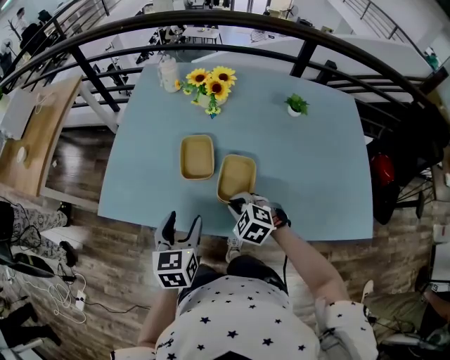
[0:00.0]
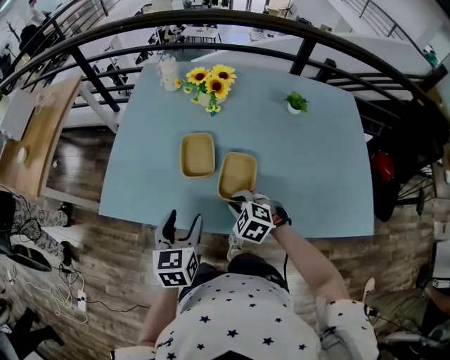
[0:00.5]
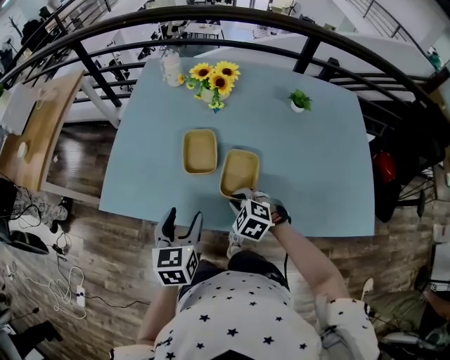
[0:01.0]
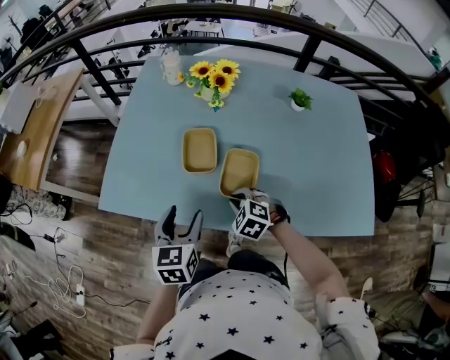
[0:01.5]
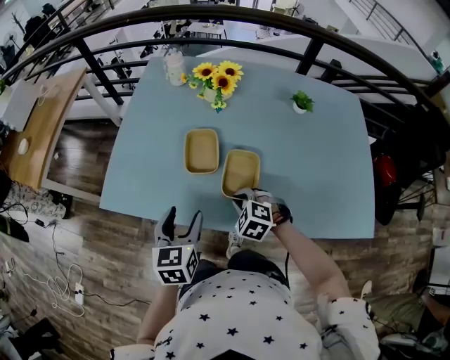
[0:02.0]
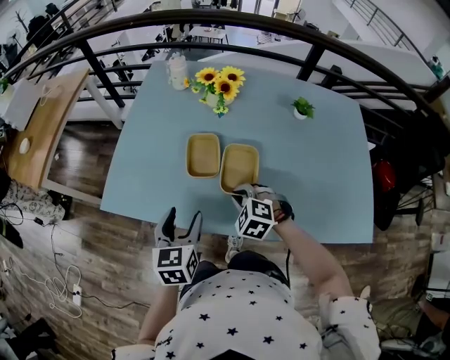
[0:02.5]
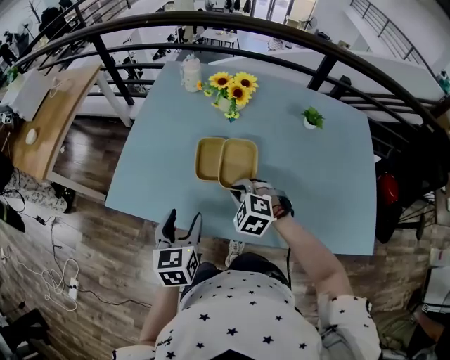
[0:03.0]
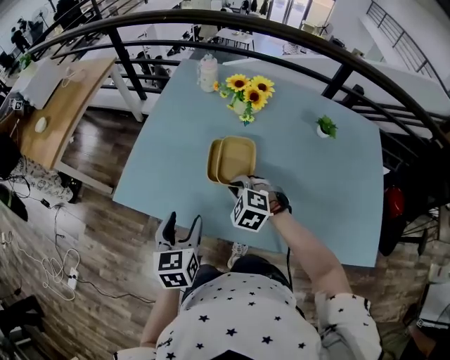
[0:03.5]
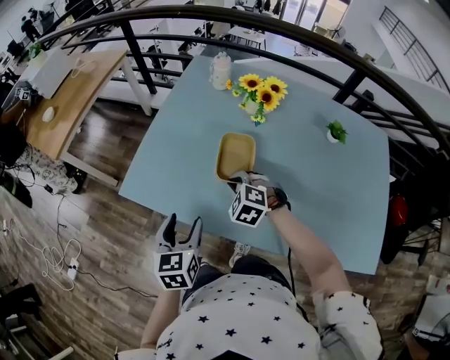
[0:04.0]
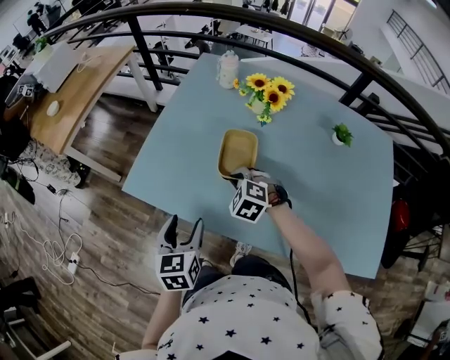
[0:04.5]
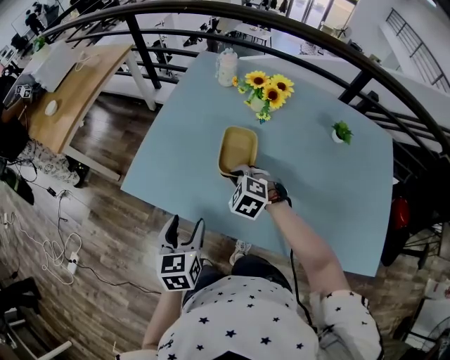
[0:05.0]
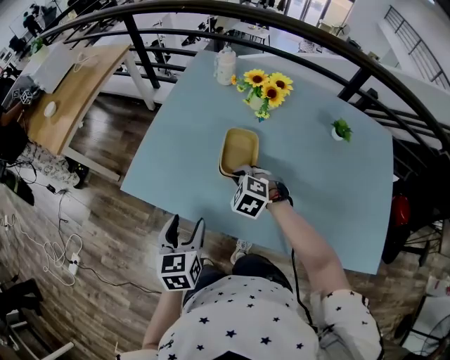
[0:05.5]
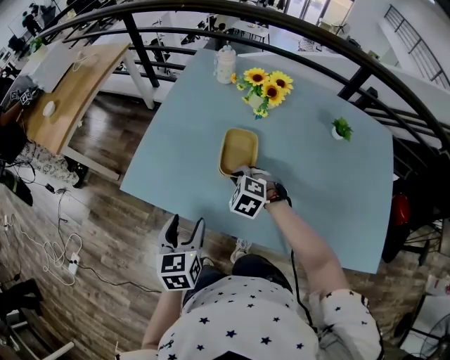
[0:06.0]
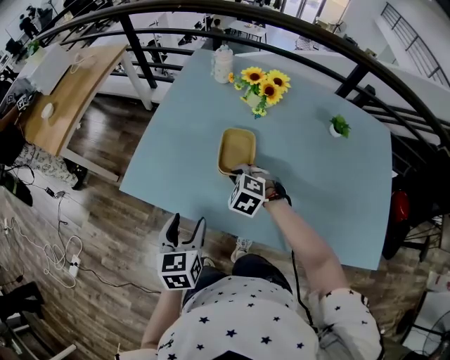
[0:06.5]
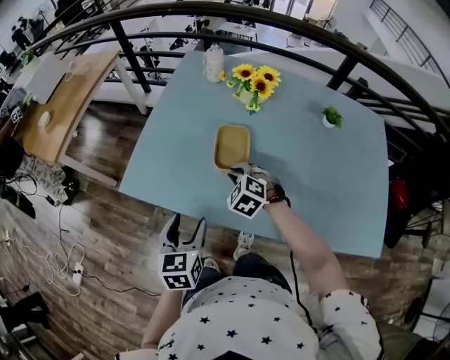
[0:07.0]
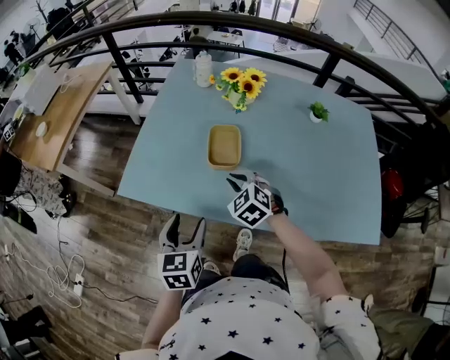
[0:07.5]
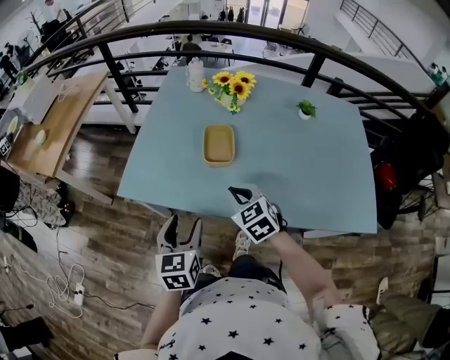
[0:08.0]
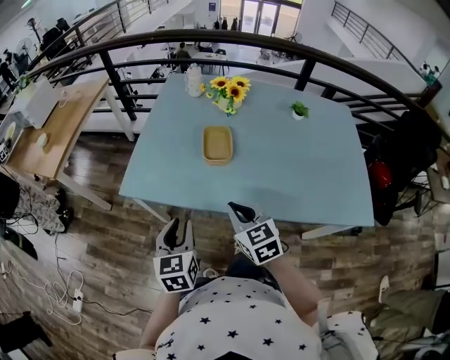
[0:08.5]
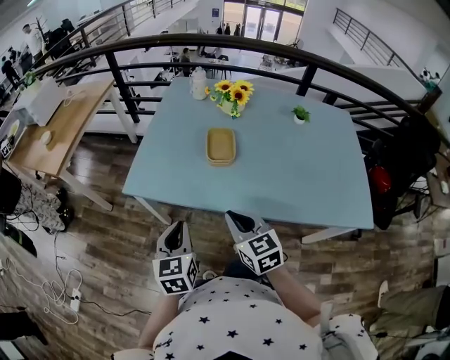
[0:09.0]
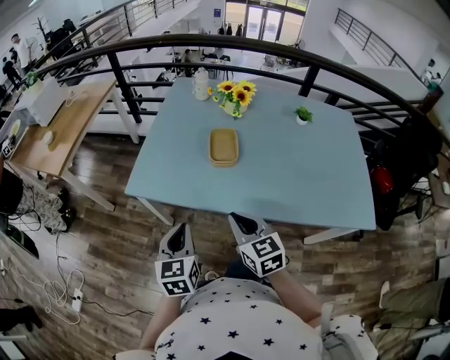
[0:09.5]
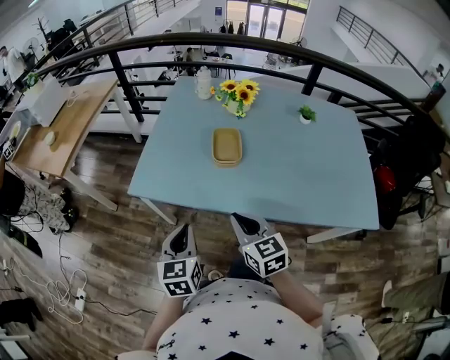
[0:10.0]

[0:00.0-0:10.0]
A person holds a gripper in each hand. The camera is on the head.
0:00.0 to 0:02.0: There are only small adjustments of the grippers.
0:02.0 to 0:04.0: The right gripper shifts about 15 cm forward and to the left, while the left gripper travels to the left by roughly 5 cm.
0:04.0 to 0:06.0: The grippers make only small movements.
0:06.0 to 0:08.0: The right gripper travels backward and upward by approximately 15 cm, and turns by roughly 40 degrees; the left gripper is displaced backward by some 5 cm.
0:08.0 to 0:10.0: The right gripper travels backward by approximately 10 cm, and changes its angle by about 20 degrees; the left gripper moves approximately 5 cm, and closes its fingers.

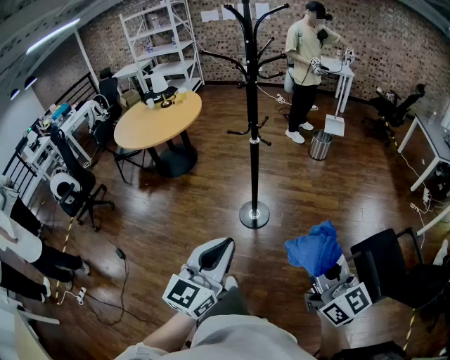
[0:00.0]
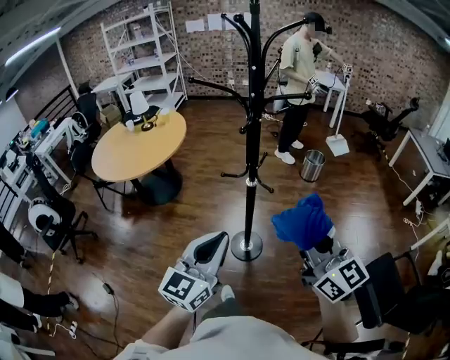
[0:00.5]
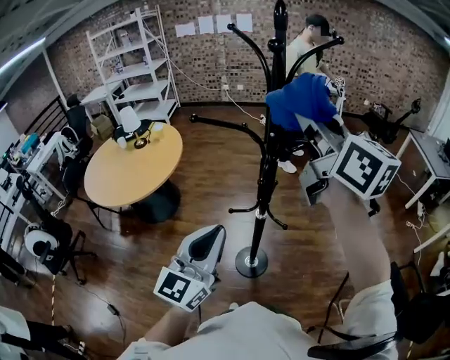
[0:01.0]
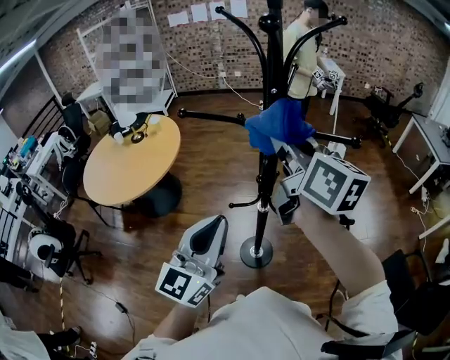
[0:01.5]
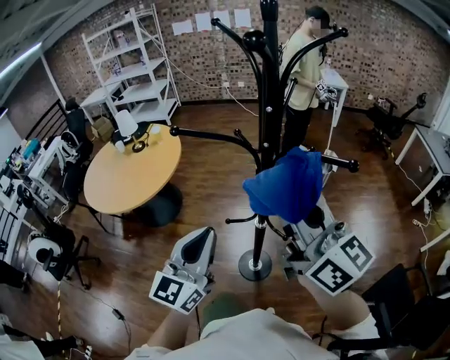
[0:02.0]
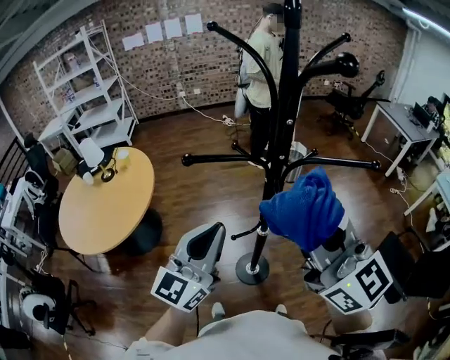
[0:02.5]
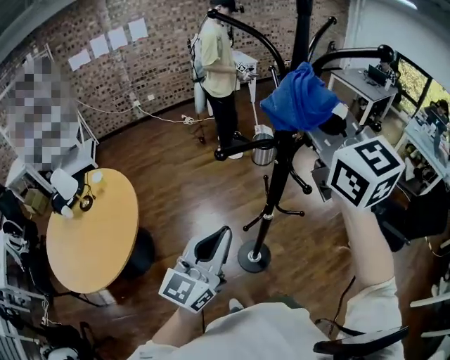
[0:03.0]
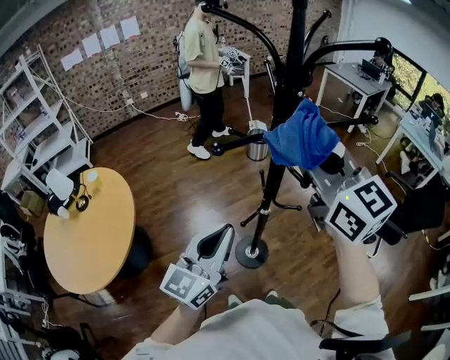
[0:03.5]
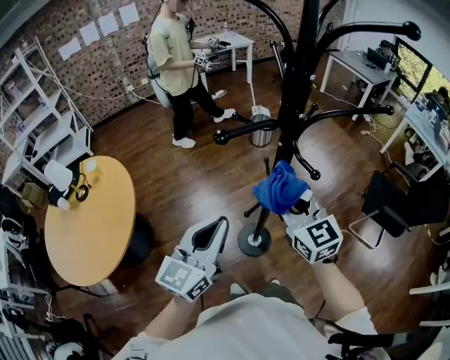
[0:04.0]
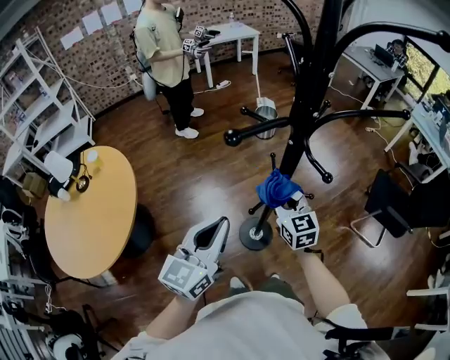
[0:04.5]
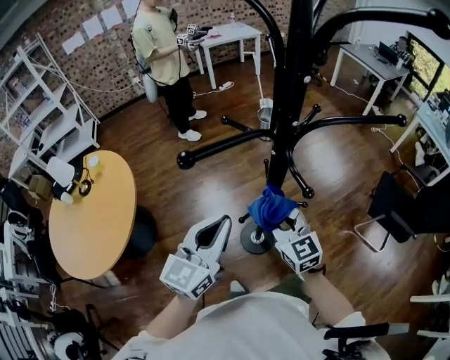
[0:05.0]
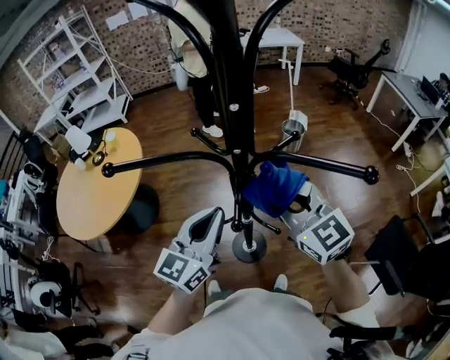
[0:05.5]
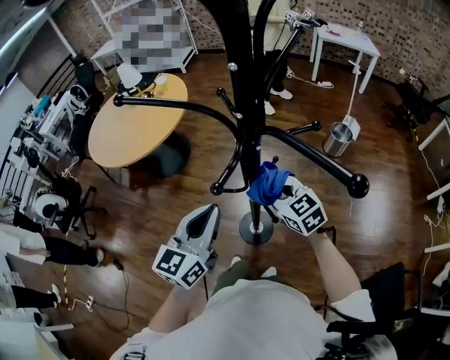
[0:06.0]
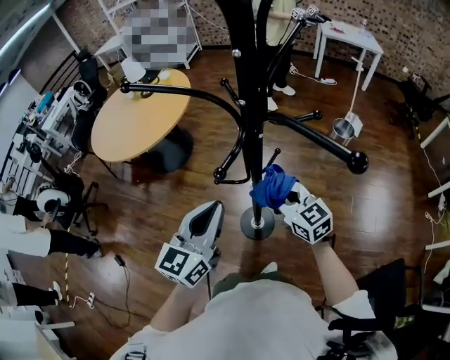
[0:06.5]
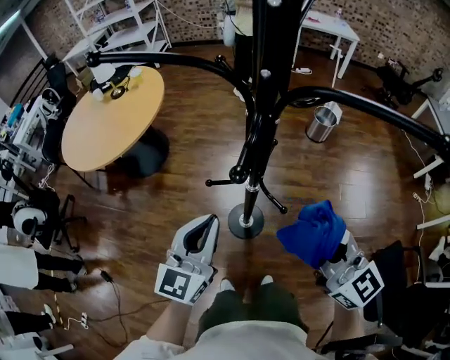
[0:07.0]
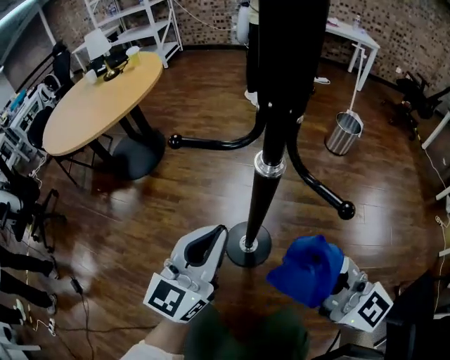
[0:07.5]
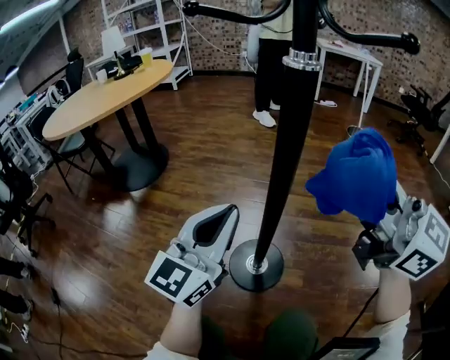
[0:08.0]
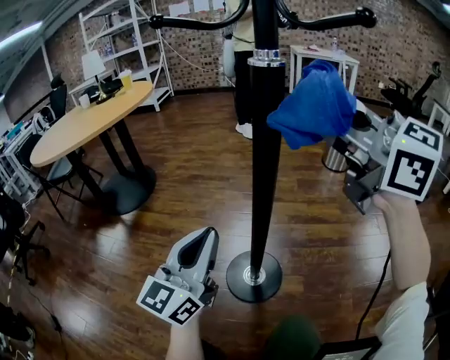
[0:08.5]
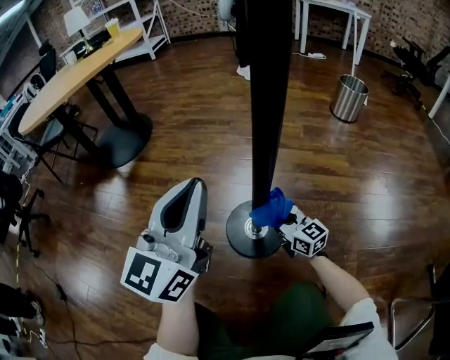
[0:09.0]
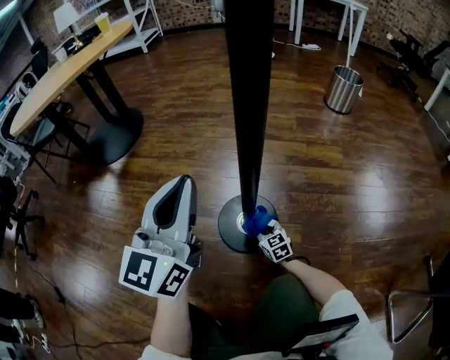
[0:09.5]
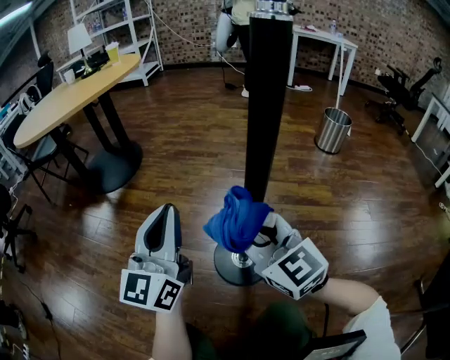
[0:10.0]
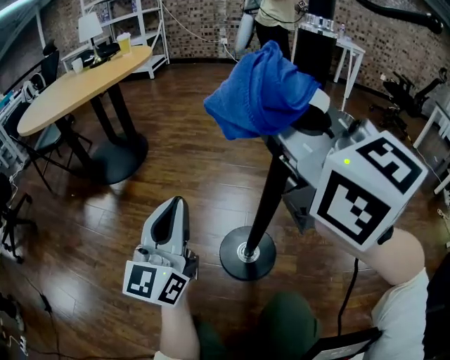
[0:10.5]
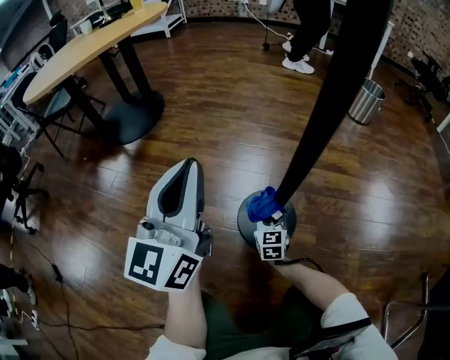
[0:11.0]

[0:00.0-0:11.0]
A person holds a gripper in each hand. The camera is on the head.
0:00.0 to 0:02.0: Both grippers are carried forward, approximately 50 cm.
0:02.0 to 0:03.5: The left gripper shifts by approximately 10 cm, and swivels approximately 40 degrees. The right gripper reaches about 10 cm upward, then returns, and changes its angle by roughly 50 degrees.
0:03.5 to 0:05.5: The right gripper goes approximately 15 cm downward, and rotates approximately 30 degrees, while the left gripper shifts by some 15 cm, and swivels roughly 20 degrees.
0:05.5 to 0:07.5: The left gripper heads downward, covering roughly 35 cm, and turns by about 20 degrees; the right gripper goes up and down, about 40 cm each way, reversing 2 times, and changes its angle by about 30 degrees.
0:07.5 to 0:09.0: The right gripper travels downward by approximately 50 cm, while the left gripper heads downward, covering approximately 20 cm.
0:09.0 to 0:11.0: The left gripper moves to the left, approximately 10 cm. The right gripper goes up and down, approximately 70 cm each way, reversing 2 times, and turns by roughly 40 degrees.

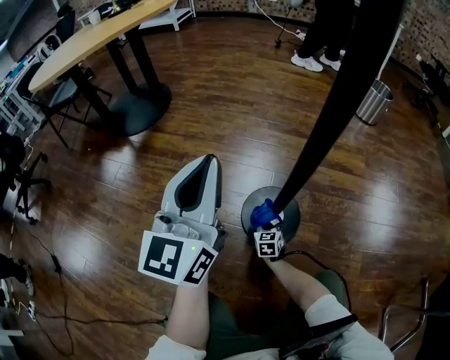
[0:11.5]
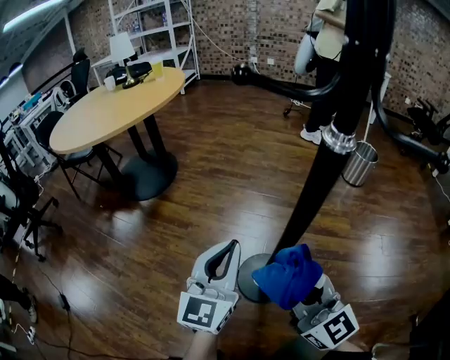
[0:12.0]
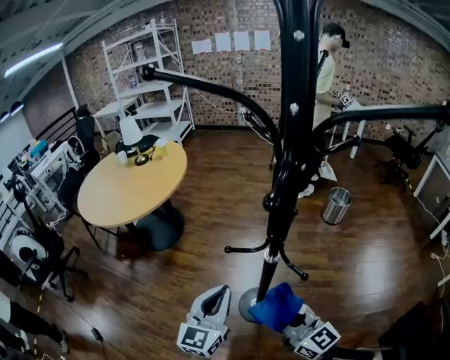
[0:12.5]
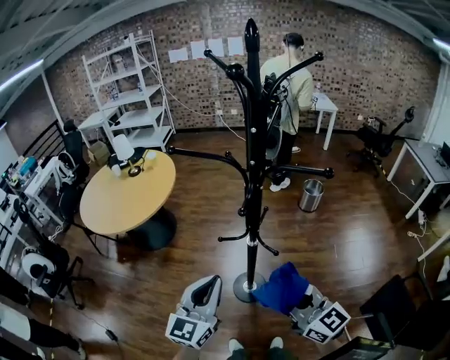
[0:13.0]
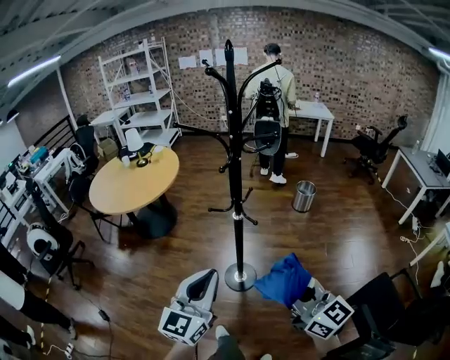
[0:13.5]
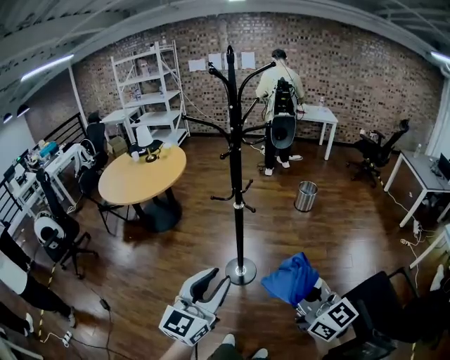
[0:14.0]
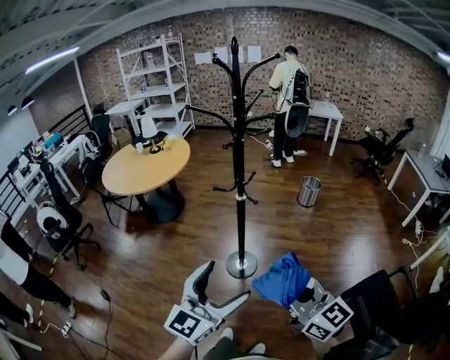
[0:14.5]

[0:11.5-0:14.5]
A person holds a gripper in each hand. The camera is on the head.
0:11.5 to 0:13.0: The right gripper moves upward, about 1 m, and angles its fingers upward, by about 40 degrees. Meanwhile the left gripper shifts some 60 cm upward.
0:13.0 to 0:14.5: Both grippers travel together backward, about 30 cm. The left gripper opens its fingers.

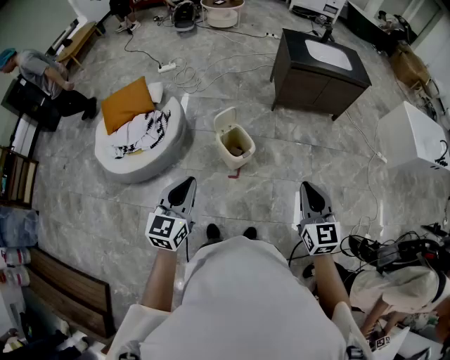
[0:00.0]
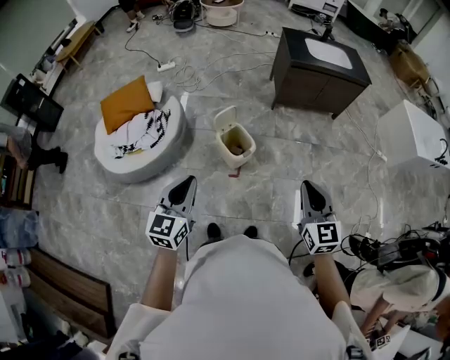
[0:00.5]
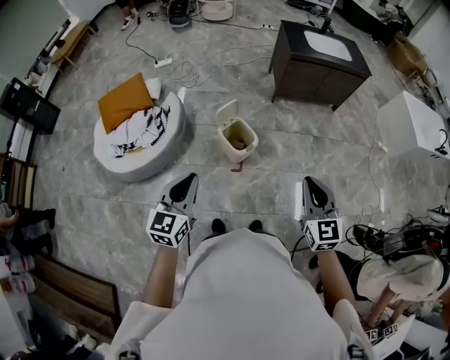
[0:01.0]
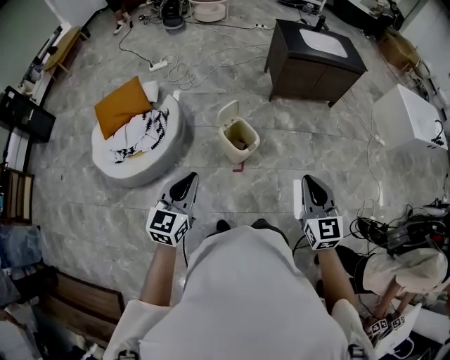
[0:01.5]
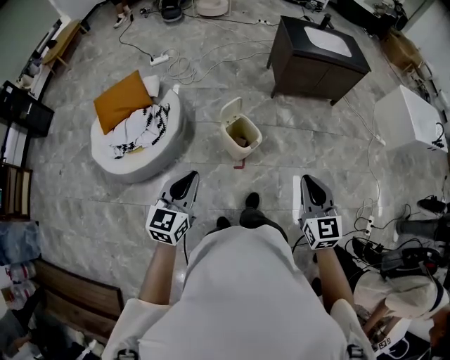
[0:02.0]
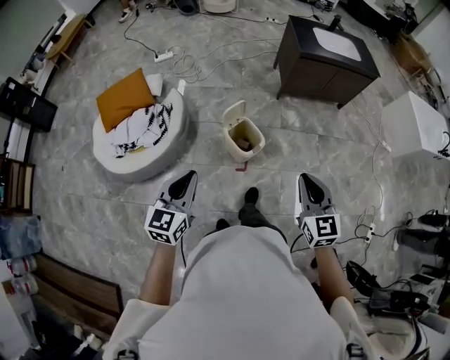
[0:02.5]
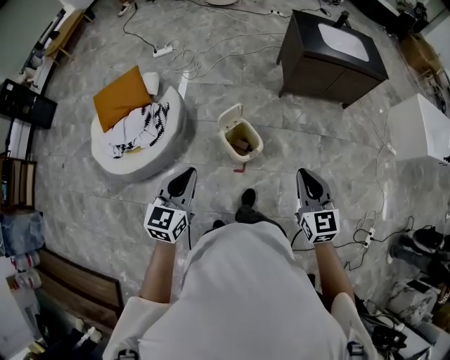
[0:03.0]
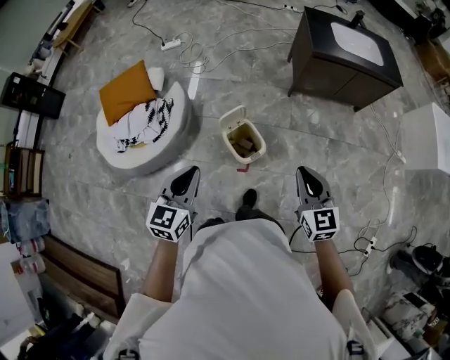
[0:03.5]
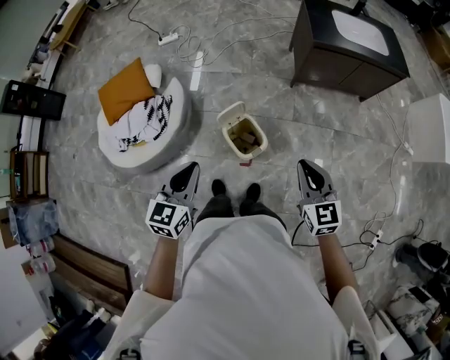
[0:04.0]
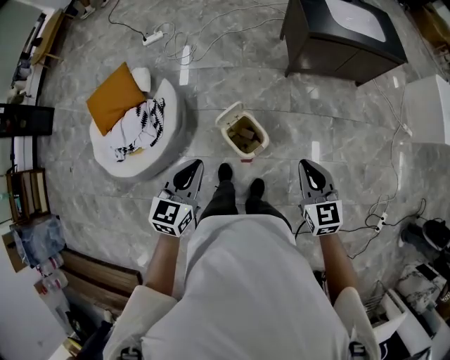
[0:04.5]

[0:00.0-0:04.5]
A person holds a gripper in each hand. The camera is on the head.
0:00.0 to 0:02.0: The two grippers go roughly 10 cm to the left.
0:02.0 to 0:04.5: The grippers both shift forward by roughly 30 cm.
